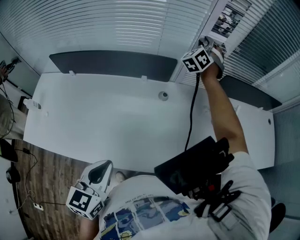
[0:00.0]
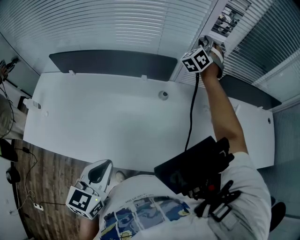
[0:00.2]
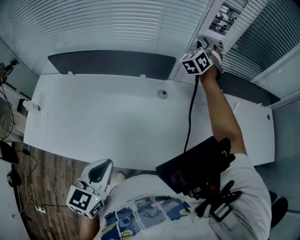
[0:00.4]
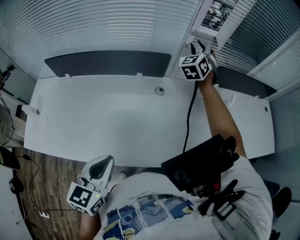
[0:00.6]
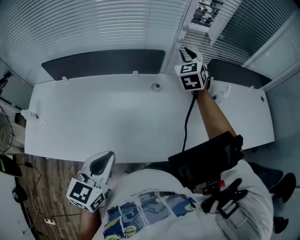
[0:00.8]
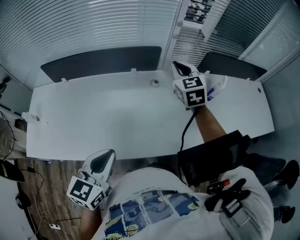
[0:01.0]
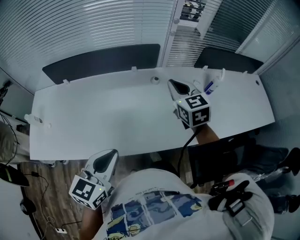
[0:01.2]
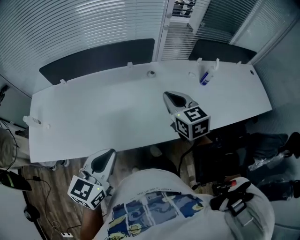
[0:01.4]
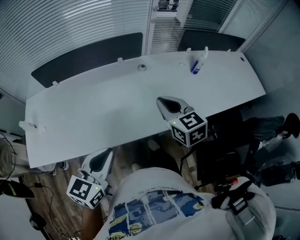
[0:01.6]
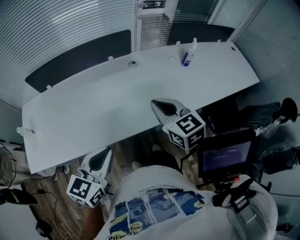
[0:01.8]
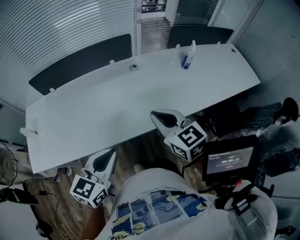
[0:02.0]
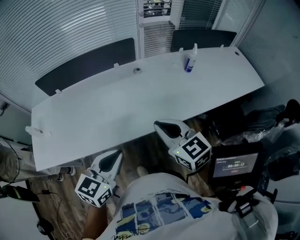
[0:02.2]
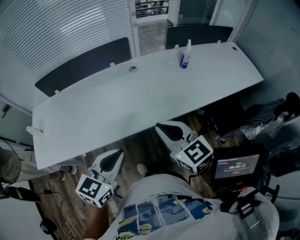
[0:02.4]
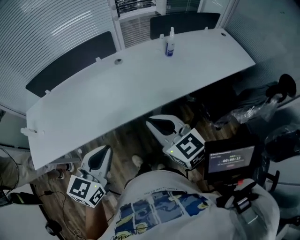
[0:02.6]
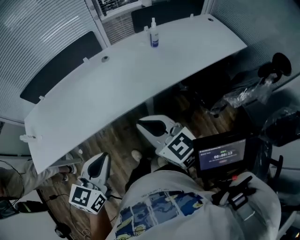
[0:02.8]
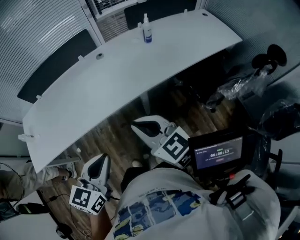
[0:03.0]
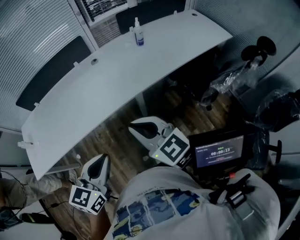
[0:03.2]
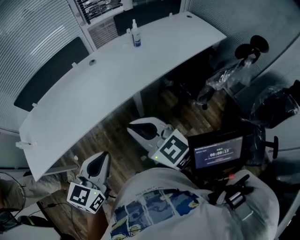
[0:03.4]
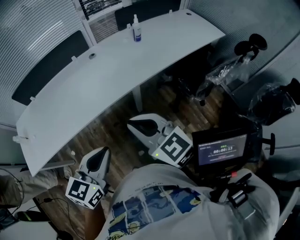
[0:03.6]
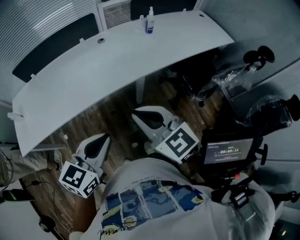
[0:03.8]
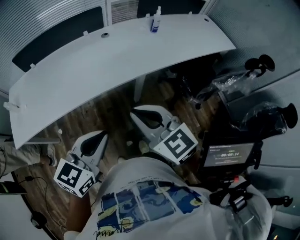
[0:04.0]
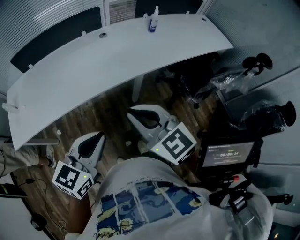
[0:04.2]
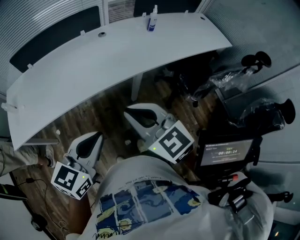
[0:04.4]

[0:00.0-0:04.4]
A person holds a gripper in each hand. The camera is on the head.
0:00.0 to 0:01.4: The left gripper shifts some 10 cm backward, and turns by roughly 20 degrees, while the right gripper goes about 50 cm backward, rotates around the line of its fingers by some 50 degrees, clockwise from behind, and closes up.
0:01.4 to 0:03.0: The right gripper is displaced backward by roughly 35 cm. The left gripper goes approximately 25 cm backward and to the right.
0:03.0 to 0:04.4: The left gripper shifts some 10 cm to the left and backward; the right gripper shifts roughly 15 cm to the left, backward and upward.

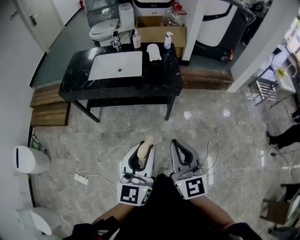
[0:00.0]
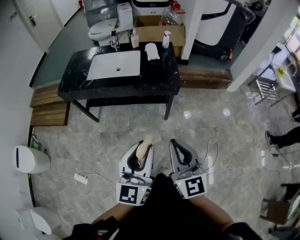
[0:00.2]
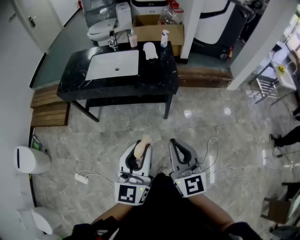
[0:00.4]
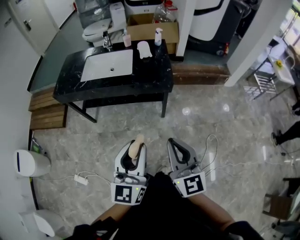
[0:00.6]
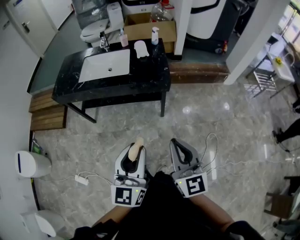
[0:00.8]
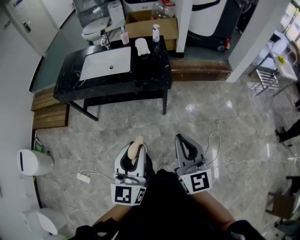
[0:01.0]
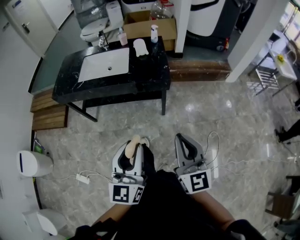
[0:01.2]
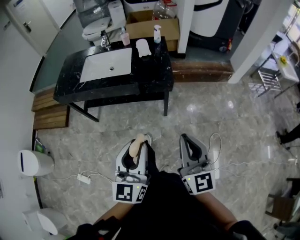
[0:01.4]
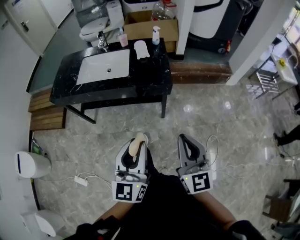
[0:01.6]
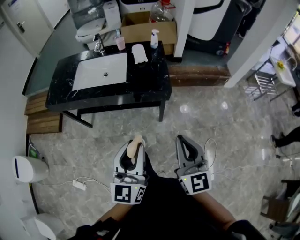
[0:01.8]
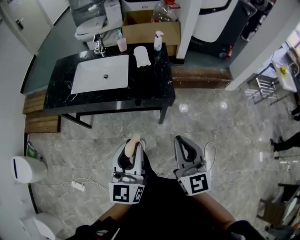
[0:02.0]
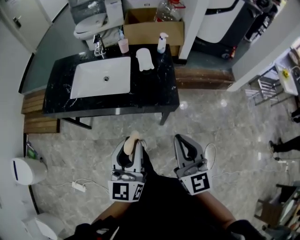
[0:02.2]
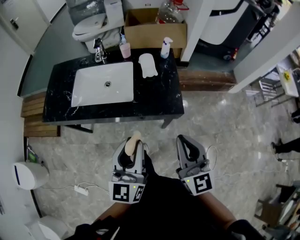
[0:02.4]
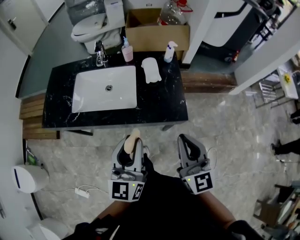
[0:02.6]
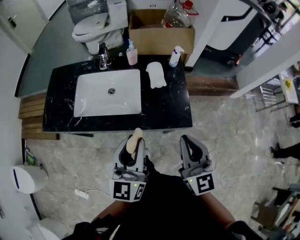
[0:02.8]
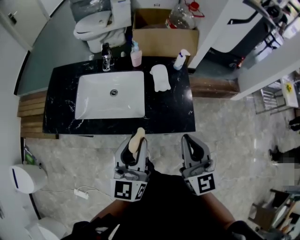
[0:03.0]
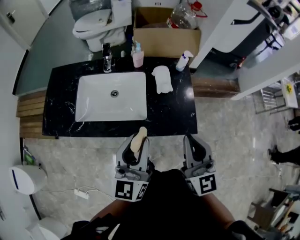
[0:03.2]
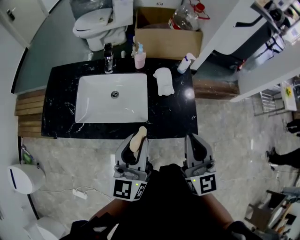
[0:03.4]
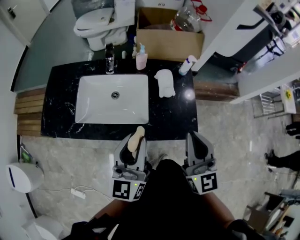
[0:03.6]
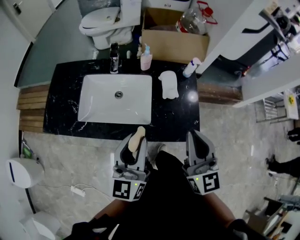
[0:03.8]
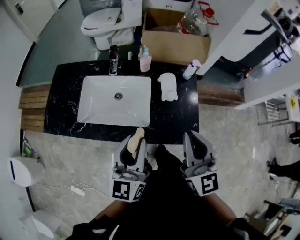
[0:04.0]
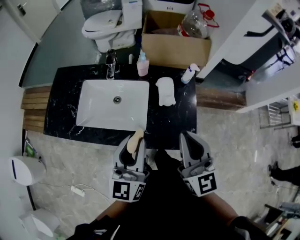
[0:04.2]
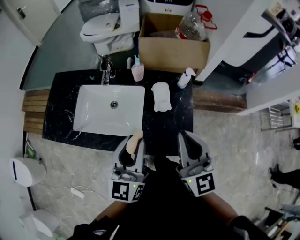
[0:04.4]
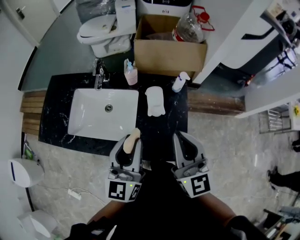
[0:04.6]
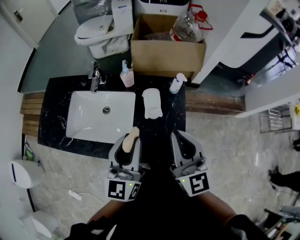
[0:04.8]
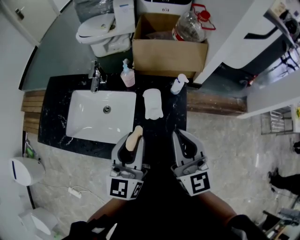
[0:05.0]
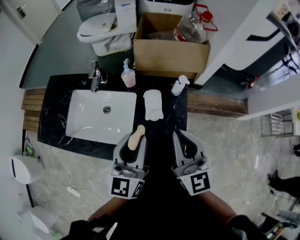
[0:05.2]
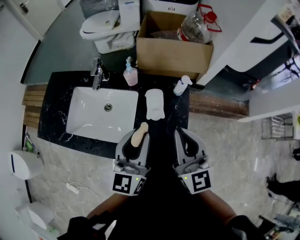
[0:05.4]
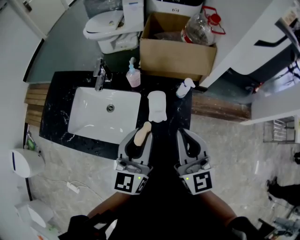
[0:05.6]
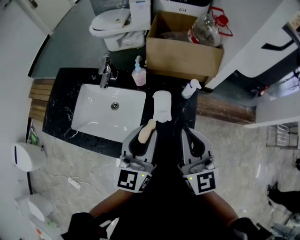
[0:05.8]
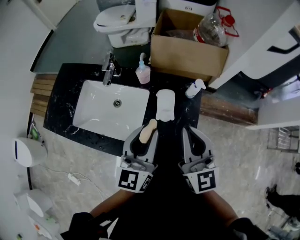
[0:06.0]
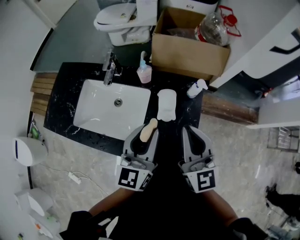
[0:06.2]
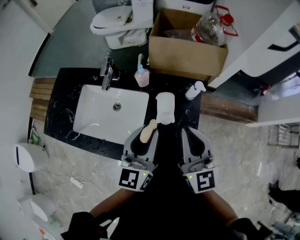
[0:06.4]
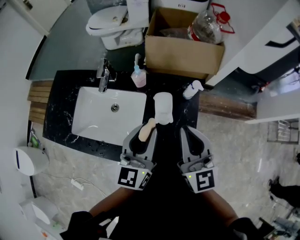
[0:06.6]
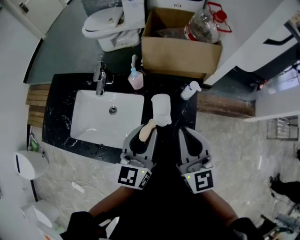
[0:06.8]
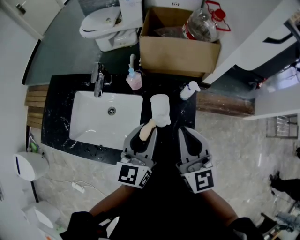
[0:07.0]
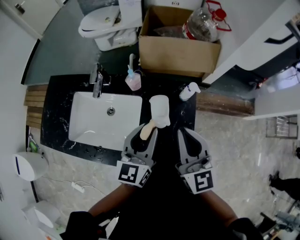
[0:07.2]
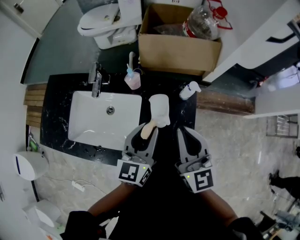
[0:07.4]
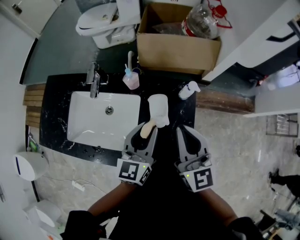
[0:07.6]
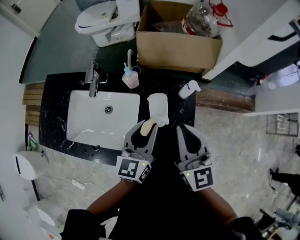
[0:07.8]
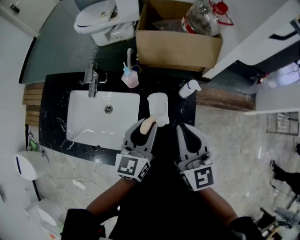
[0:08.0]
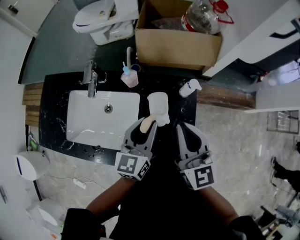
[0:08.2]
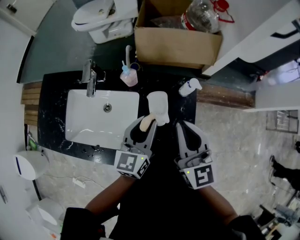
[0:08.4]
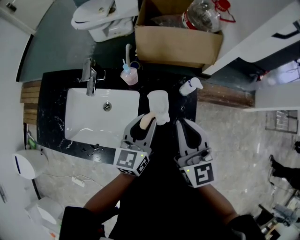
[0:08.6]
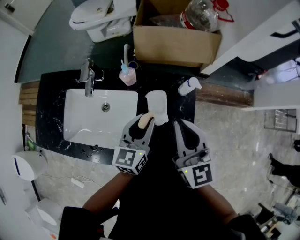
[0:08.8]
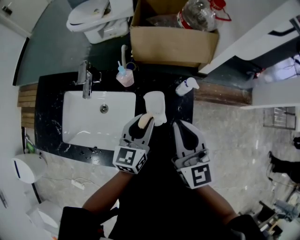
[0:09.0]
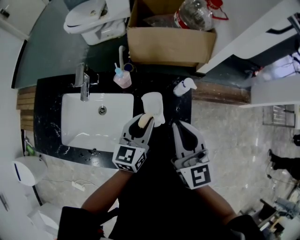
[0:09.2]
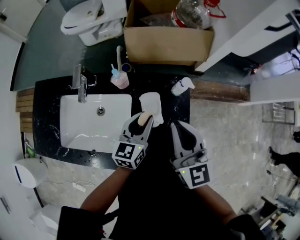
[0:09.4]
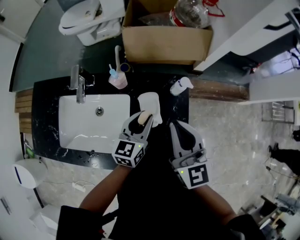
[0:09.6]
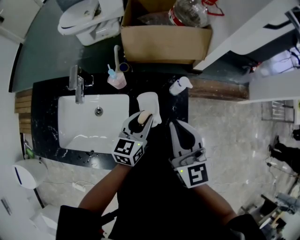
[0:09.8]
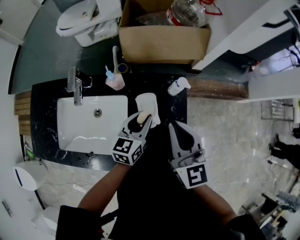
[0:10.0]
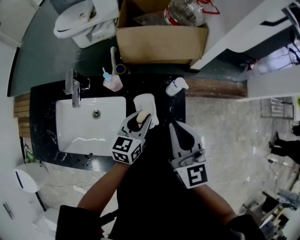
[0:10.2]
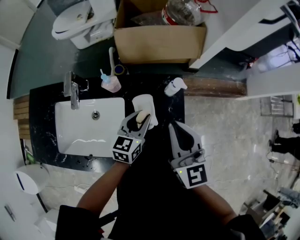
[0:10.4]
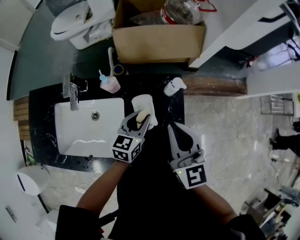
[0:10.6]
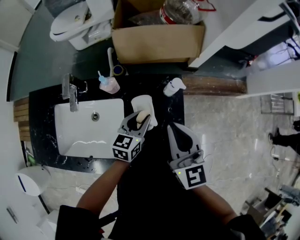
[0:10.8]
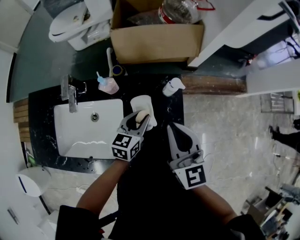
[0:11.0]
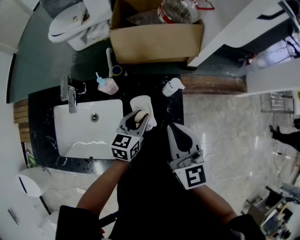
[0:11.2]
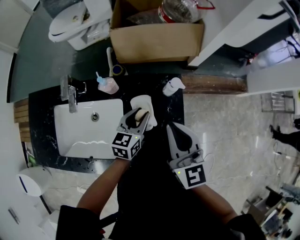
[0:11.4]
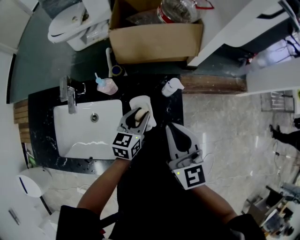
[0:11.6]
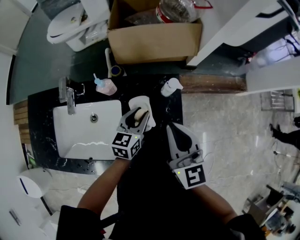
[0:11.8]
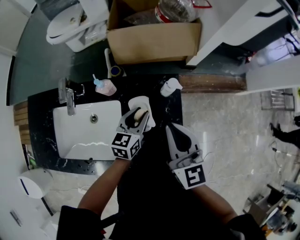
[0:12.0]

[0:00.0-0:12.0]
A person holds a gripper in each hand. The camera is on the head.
0:00.0 to 0:01.6: The left gripper travels forward by roughly 5 cm. The right gripper moves to the right, about 10 cm.
0:01.6 to 0:03.0: The two grippers go roughly 35 cm forward.
0:03.0 to 0:04.4: The grippers both shift forward by some 10 cm.
0:04.4 to 0:06.0: The right gripper goes about 10 cm forward; the left gripper heads forward and to the right, covering roughly 10 cm.
0:06.0 to 0:07.6: The right gripper changes place by approximately 5 cm, while the left gripper is displaced forward and downward by about 10 cm.
0:07.6 to 0:09.0: The left gripper is displaced downward by approximately 5 cm.
0:09.0 to 0:10.4: The left gripper travels downward by about 5 cm.
0:10.4 to 0:12.0: The grippers move only a little.

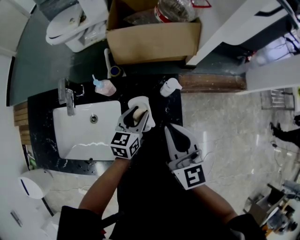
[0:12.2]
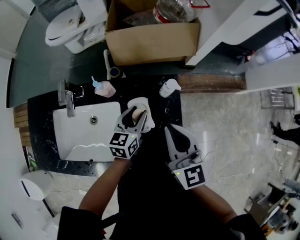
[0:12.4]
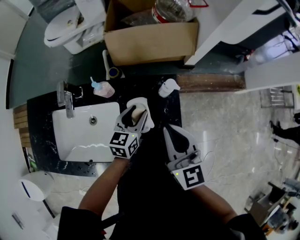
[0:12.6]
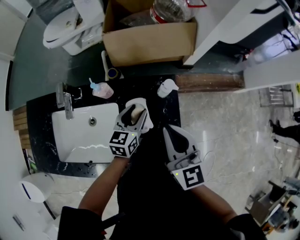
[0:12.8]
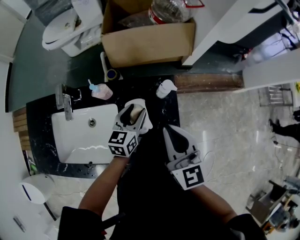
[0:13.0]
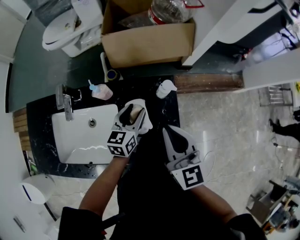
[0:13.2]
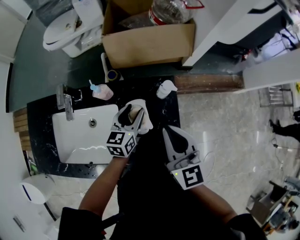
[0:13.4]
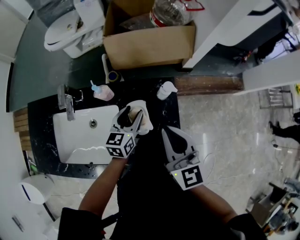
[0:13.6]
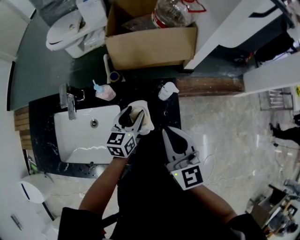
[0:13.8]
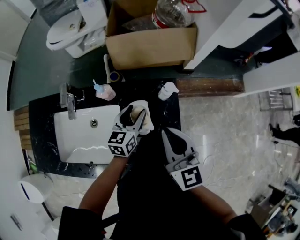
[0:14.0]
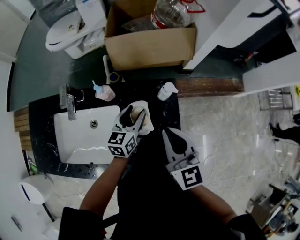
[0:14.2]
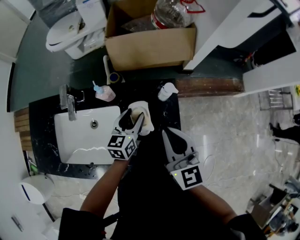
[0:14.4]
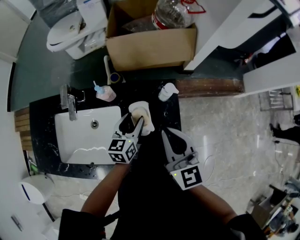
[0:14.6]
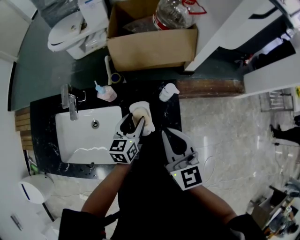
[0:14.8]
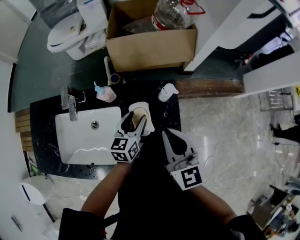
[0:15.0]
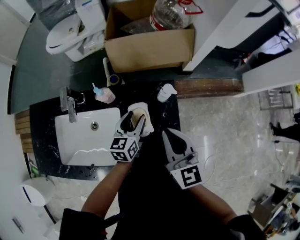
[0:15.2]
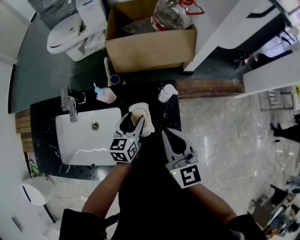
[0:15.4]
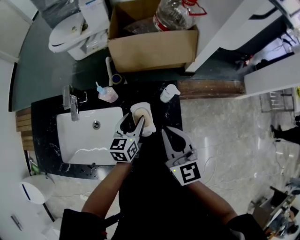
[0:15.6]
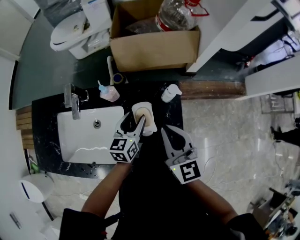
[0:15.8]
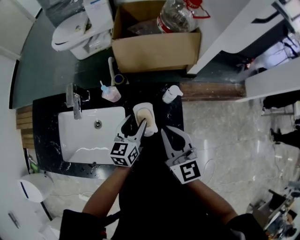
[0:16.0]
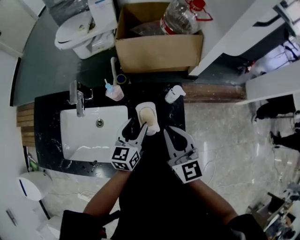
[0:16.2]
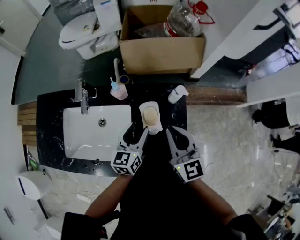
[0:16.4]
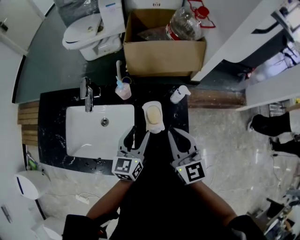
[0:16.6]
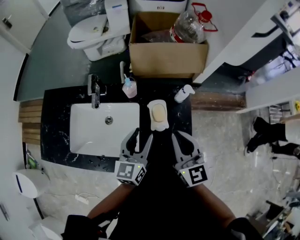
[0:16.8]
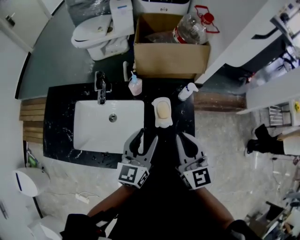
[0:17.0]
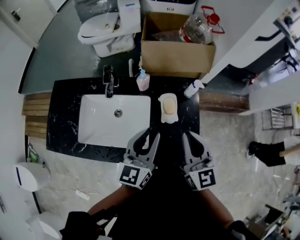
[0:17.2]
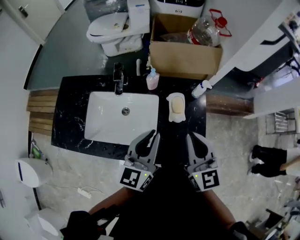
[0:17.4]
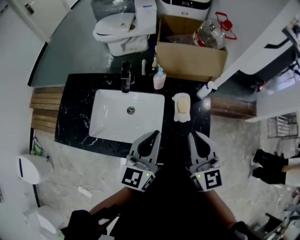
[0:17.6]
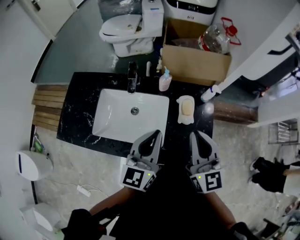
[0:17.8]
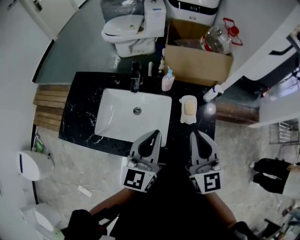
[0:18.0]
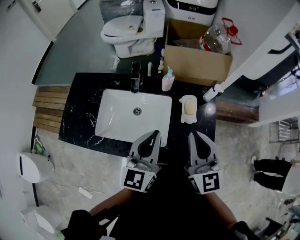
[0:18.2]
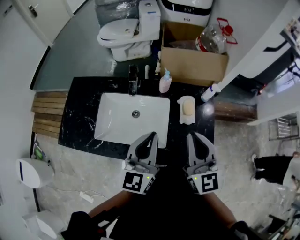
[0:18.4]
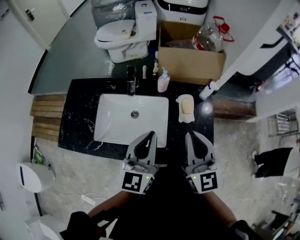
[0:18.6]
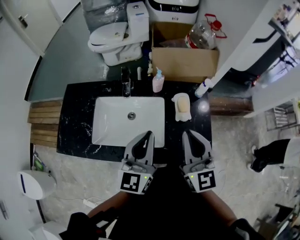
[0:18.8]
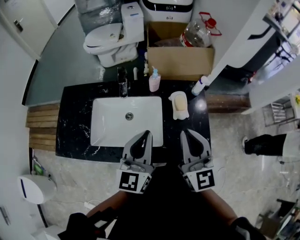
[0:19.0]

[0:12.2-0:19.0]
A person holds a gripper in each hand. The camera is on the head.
0:12.2 to 0:16.2: The grippers move only a little.
0:16.2 to 0:17.6: The left gripper shifts some 25 cm upward, backward and to the left, and closes its fingers, while the right gripper goes some 15 cm backward, upward and to the left.
0:17.6 to 0:19.0: The left gripper ends up roughly 5 cm from where it was; the right gripper moves some 5 cm.
